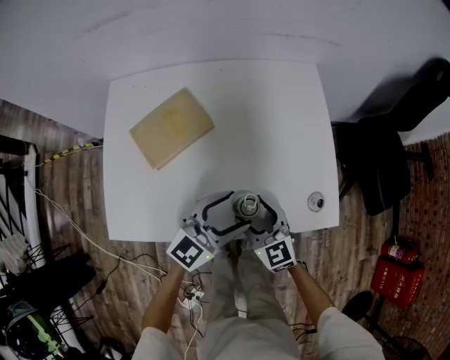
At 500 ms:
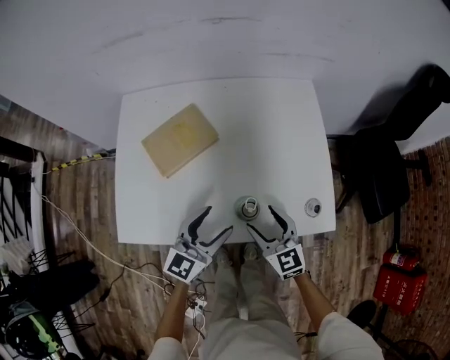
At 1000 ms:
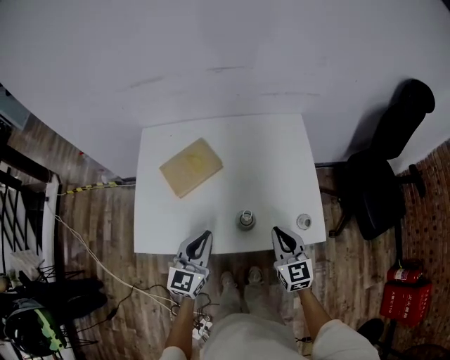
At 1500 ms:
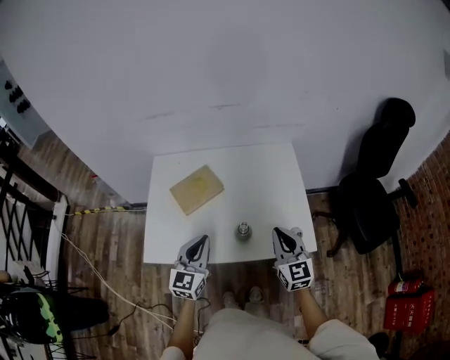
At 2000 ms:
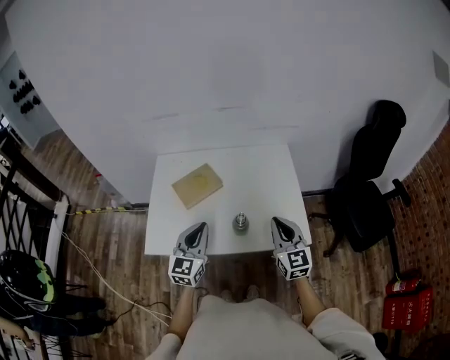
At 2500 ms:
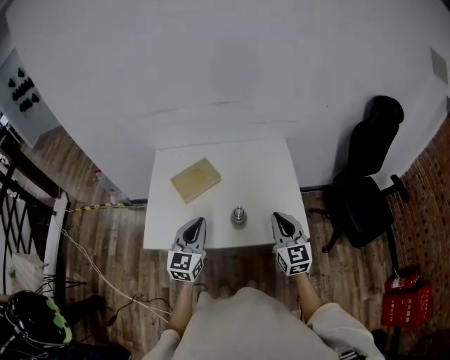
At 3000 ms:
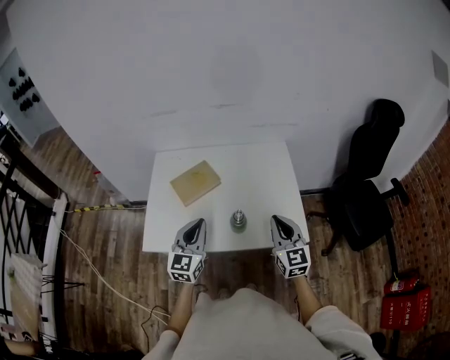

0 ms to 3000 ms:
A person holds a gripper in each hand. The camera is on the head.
0 ms to 1500 ms: The right gripper goes about 25 cm upward and to the right, changes its angle by some 20 degrees, and closes; the left gripper heads upward, to the left and backward, covering roughly 20 cm, changes its angle by about 40 degrees, and closes up.
1500 ms to 3000 ms: The grippers move only a little.

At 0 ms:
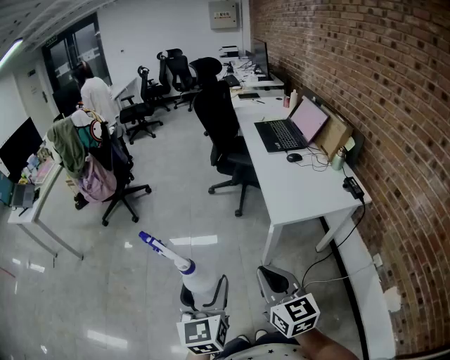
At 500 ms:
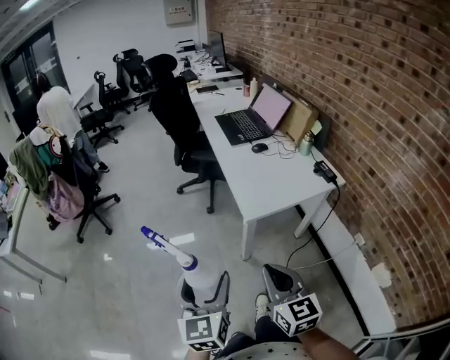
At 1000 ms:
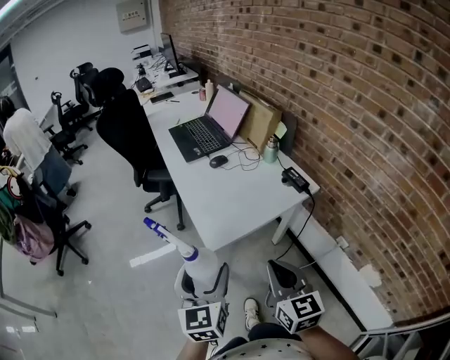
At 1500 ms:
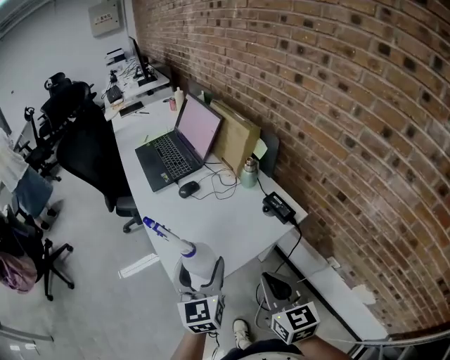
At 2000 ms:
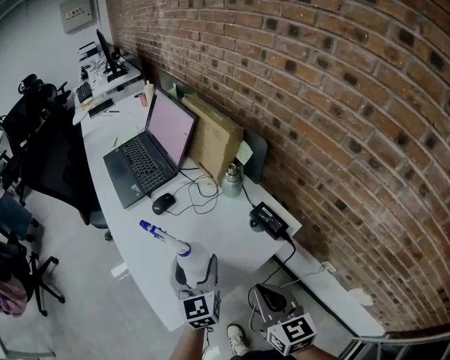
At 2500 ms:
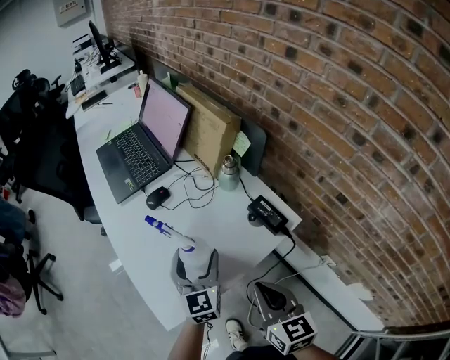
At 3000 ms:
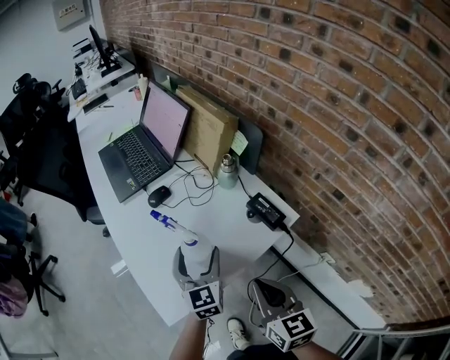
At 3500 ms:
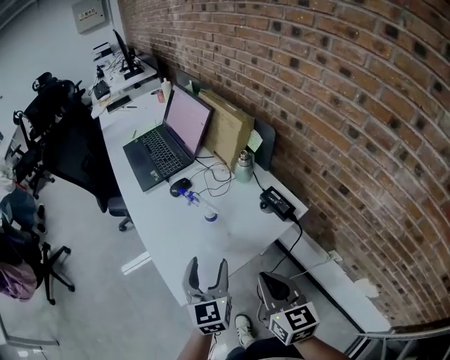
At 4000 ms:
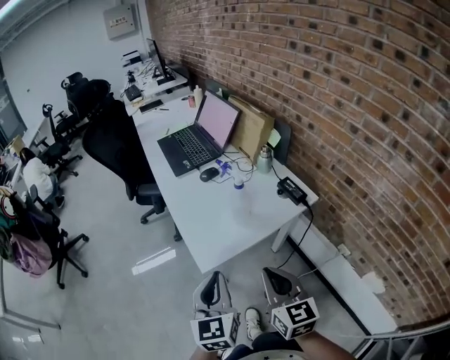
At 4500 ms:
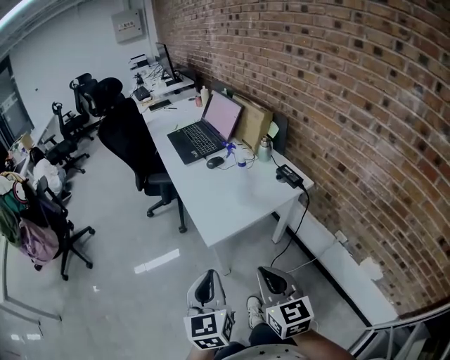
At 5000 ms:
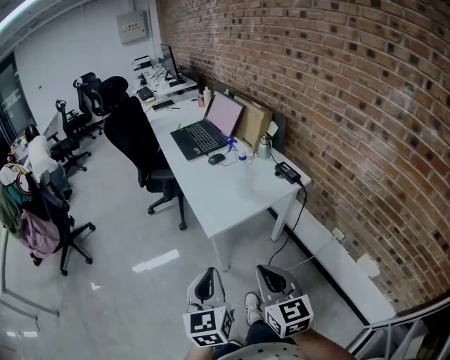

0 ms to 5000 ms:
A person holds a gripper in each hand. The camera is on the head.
0 ms to 2500 ms: Both grippers are carried about 60 cm. The left gripper rotates some 30 degrees; the right gripper rotates some 30 degrees.
2500 ms to 5000 ms: Both grippers travel together backward and to the left, approximately 40 cm. The left gripper closes its fingers.

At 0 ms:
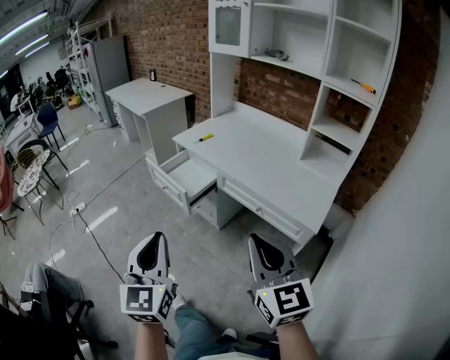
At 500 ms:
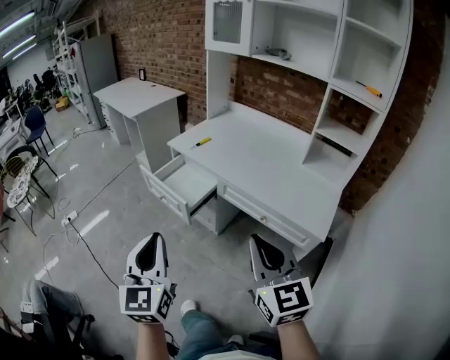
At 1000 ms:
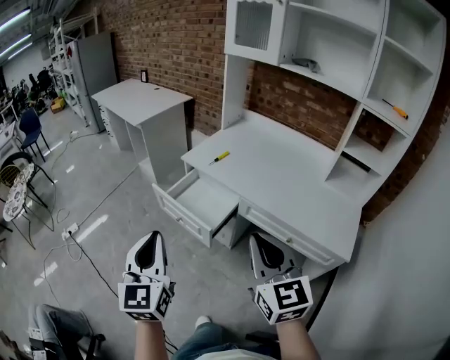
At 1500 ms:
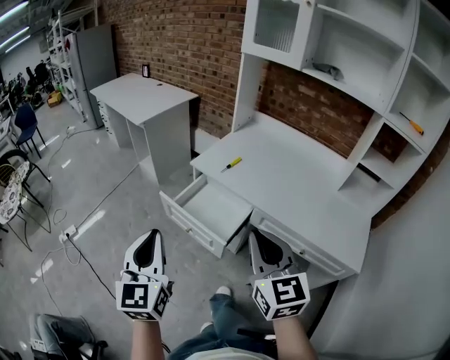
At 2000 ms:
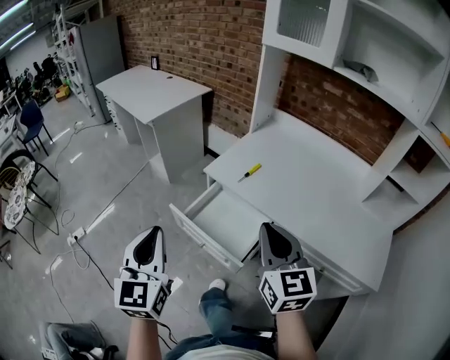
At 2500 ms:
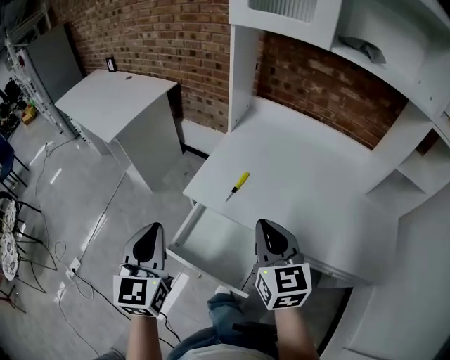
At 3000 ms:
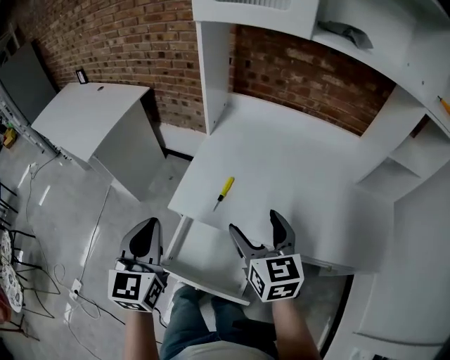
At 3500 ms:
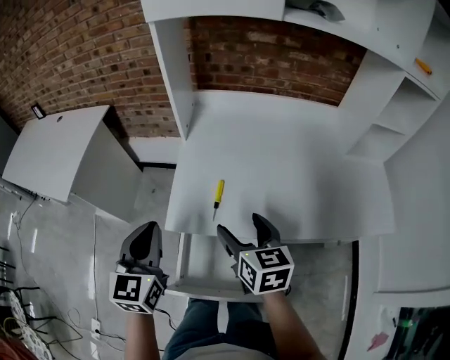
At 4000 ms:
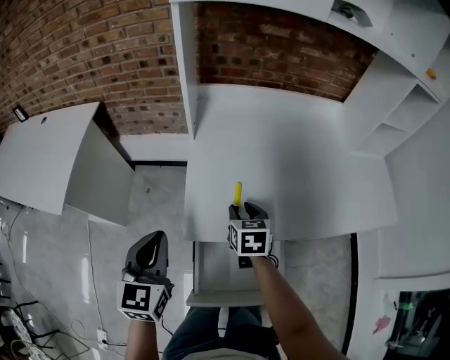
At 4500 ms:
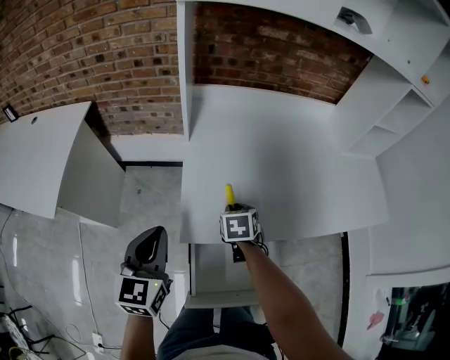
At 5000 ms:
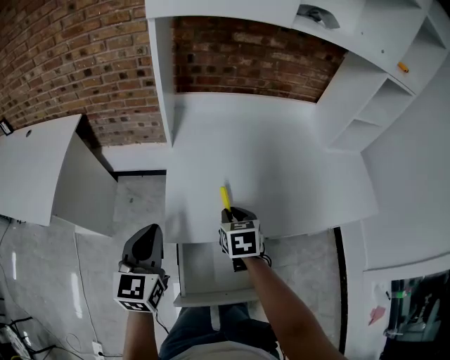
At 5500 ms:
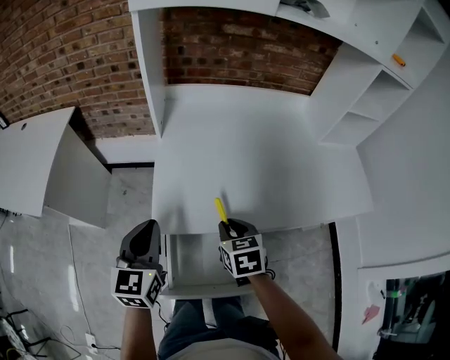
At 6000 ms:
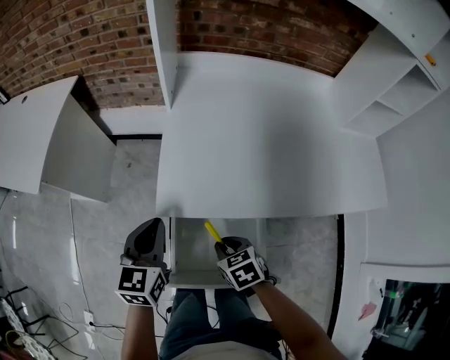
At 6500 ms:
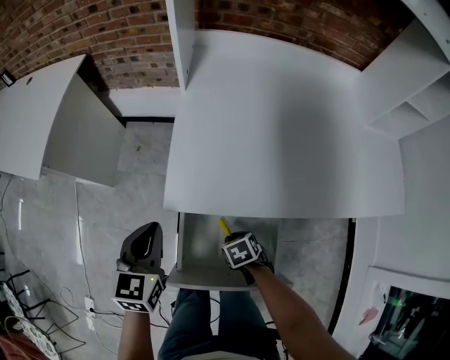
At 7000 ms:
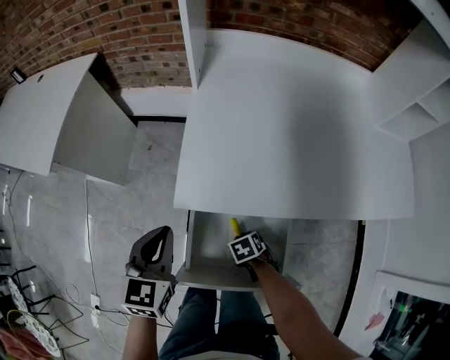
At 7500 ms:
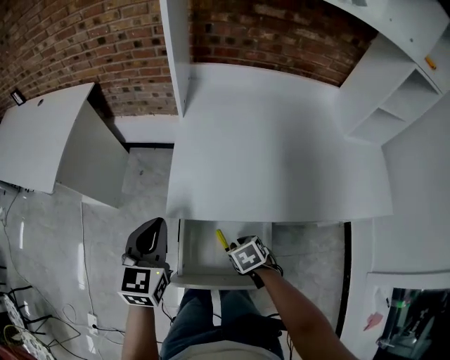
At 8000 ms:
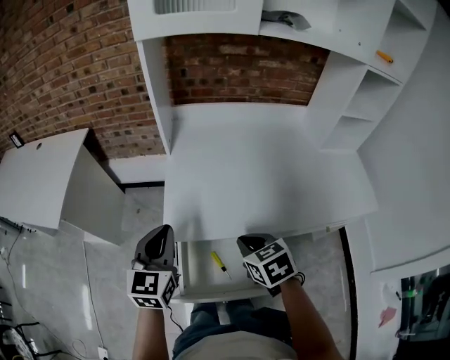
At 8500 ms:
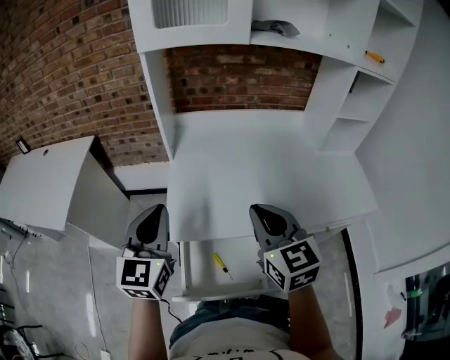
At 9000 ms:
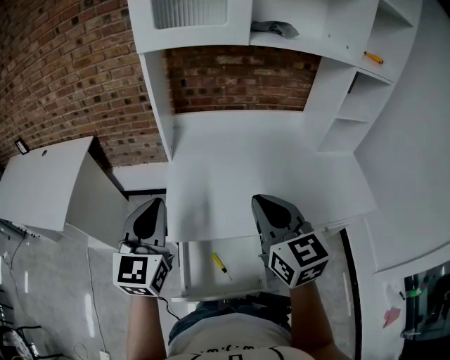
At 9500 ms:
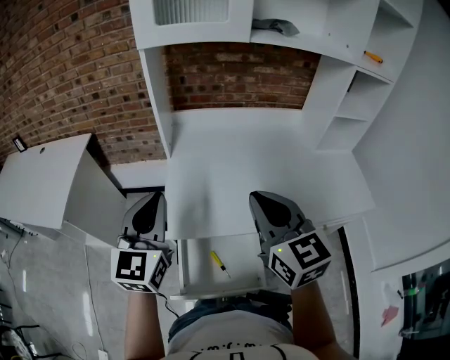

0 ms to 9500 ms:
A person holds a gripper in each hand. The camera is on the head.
0 ms to 2000 ms: The pair of grippers is taken forward and to the left, roughly 50 cm.
2000 ms to 4000 ms: The right gripper shifts by roughly 40 cm, angles its fingers downward, by about 30 degrees, and opens up; the left gripper moves some 40 cm, and changes its angle by approximately 50 degrees.
4000 ms to 5500 ms: The right gripper travels backward and to the right by approximately 10 cm; the left gripper travels to the right by approximately 5 cm.
5500 ms to 7500 ms: The right gripper goes roughly 15 cm downward, and rotates roughly 30 degrees.
7500 ms to 9500 ms: The left gripper shifts some 20 cm upward, and turns by some 20 degrees. Meanwhile the right gripper is displaced upward by some 40 cm, and tips its fingers upward by some 60 degrees.

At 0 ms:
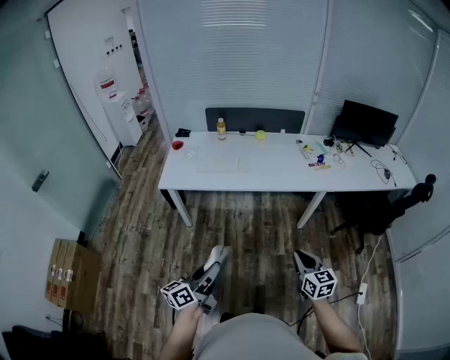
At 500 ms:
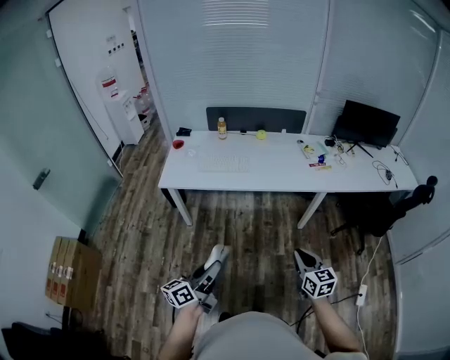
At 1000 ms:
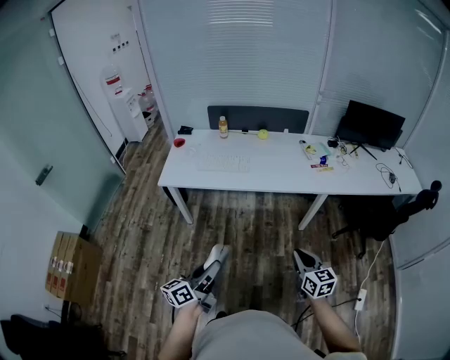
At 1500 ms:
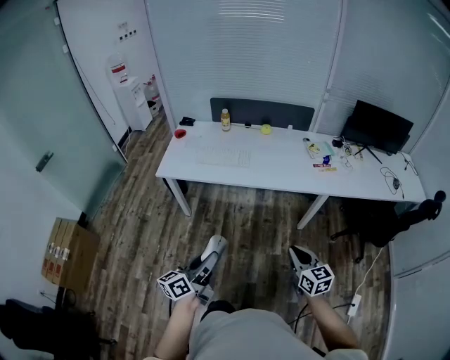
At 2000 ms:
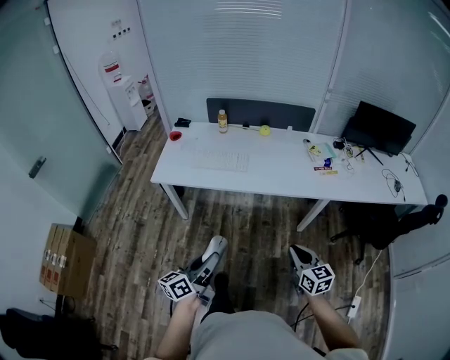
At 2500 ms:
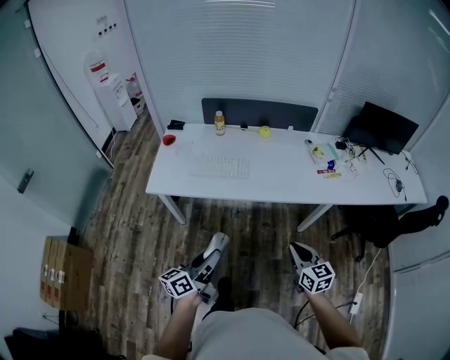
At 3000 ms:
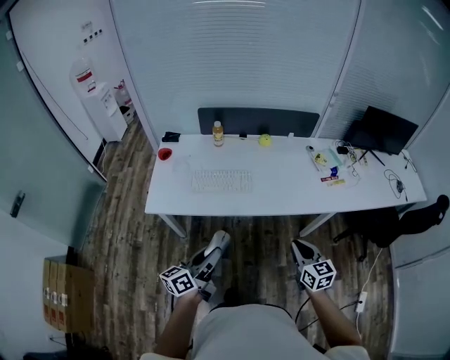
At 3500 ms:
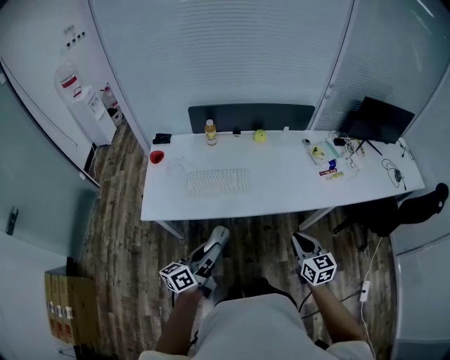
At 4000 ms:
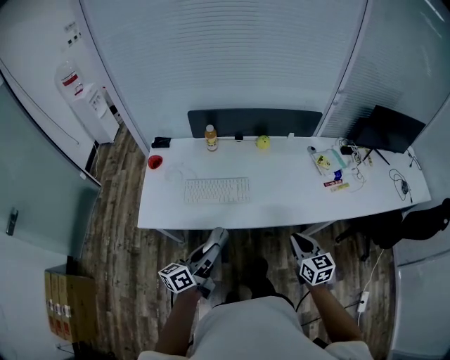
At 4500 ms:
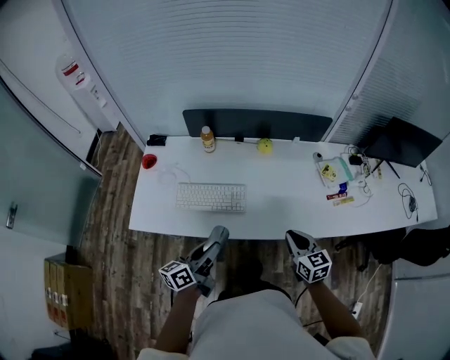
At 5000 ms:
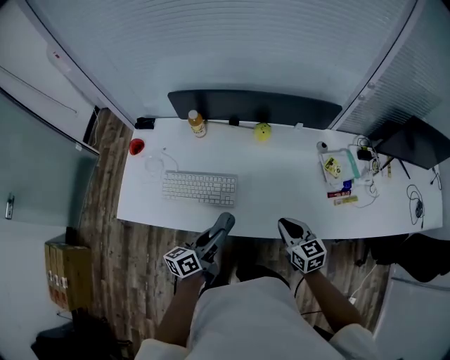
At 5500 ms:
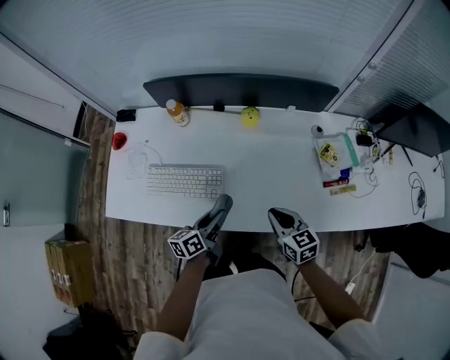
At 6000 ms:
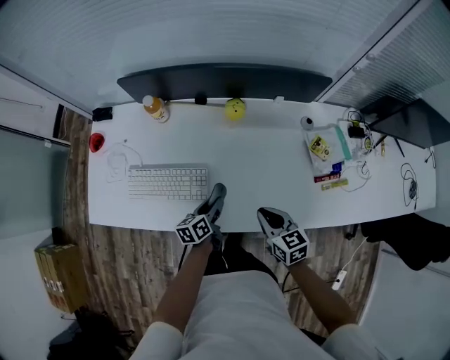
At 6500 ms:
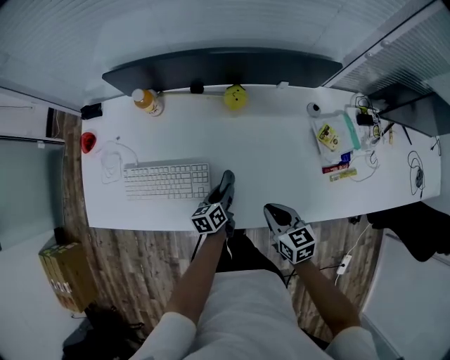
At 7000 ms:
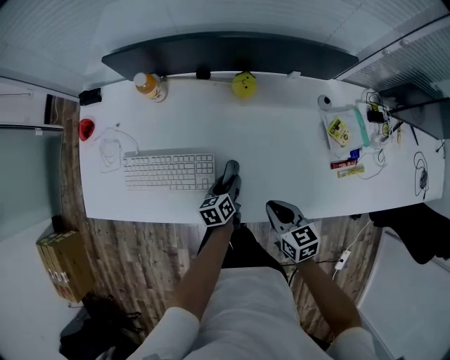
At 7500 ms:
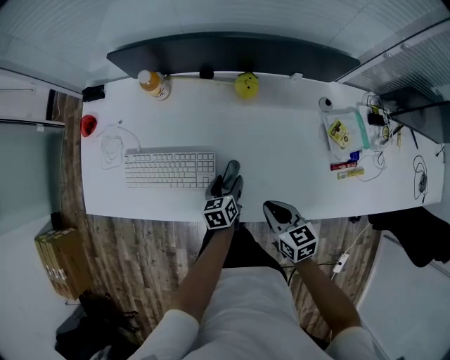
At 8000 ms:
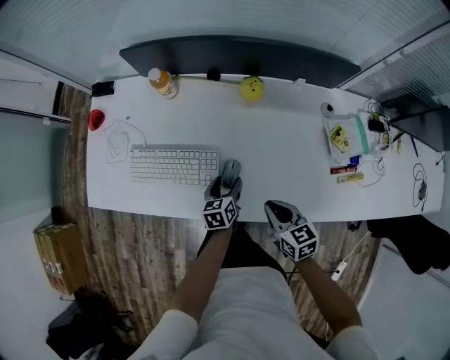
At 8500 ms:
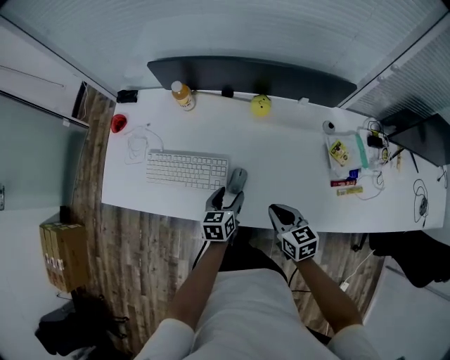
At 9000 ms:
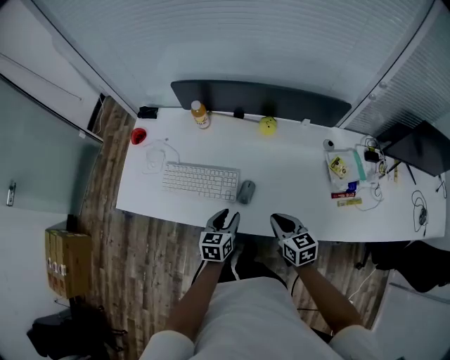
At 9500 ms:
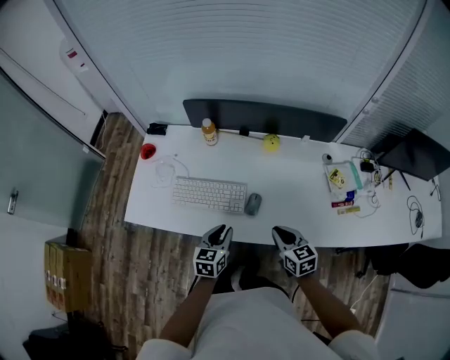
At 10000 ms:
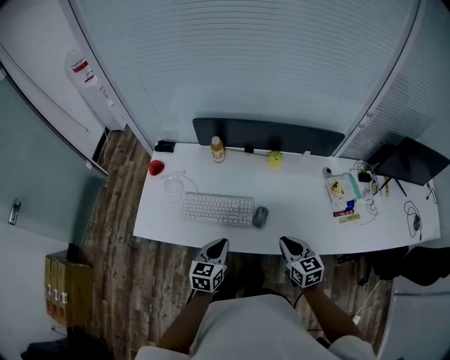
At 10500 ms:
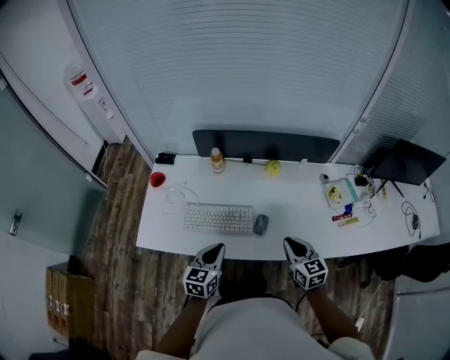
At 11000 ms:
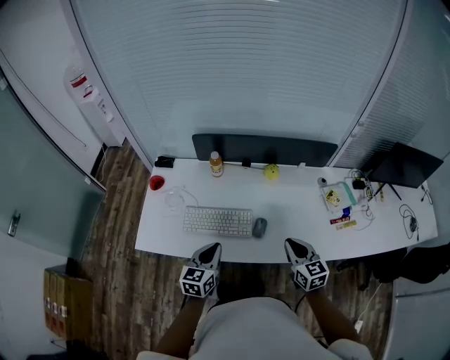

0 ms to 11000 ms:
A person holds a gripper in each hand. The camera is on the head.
0 ms to 2000 ms: The right gripper goes roughly 10 cm forward; the left gripper goes about 10 cm forward and to the right.
2000 ms to 3500 ms: Both grippers travel together forward and to the left, some 25 cm.
3500 ms to 5500 ms: The right gripper travels forward and downward by about 30 cm, and turns by about 20 degrees; the left gripper goes roughly 35 cm forward, to the right and downward, and swivels about 20 degrees.
5500 ms to 7500 ms: The left gripper heads downward and forward, covering some 15 cm, rotates roughly 30 degrees, and opens up; the right gripper heads downward, covering approximately 5 cm.
7500 ms to 9000 ms: The left gripper goes some 15 cm upward, backward and to the left, and closes up; the right gripper shifts approximately 5 cm upward.
9000 ms to 11000 ms: The right gripper travels upward by roughly 10 cm. The left gripper moves upward and to the left, about 20 cm, and closes its fingers.
